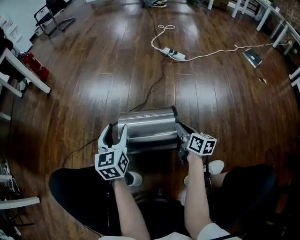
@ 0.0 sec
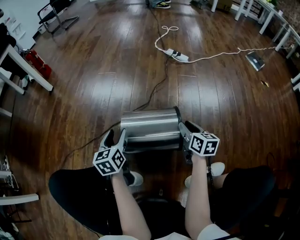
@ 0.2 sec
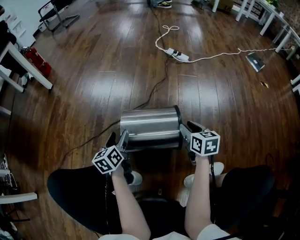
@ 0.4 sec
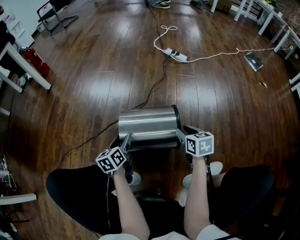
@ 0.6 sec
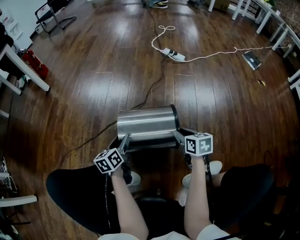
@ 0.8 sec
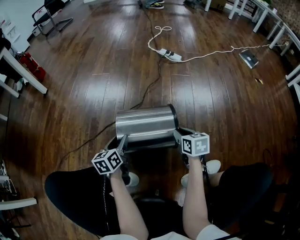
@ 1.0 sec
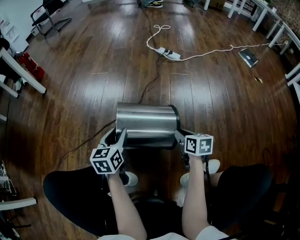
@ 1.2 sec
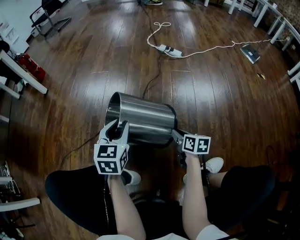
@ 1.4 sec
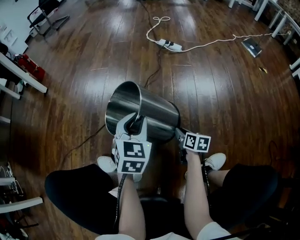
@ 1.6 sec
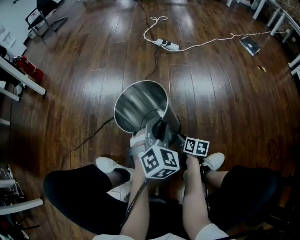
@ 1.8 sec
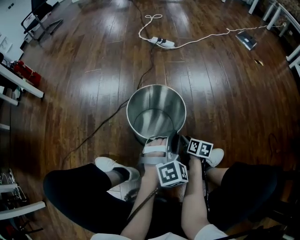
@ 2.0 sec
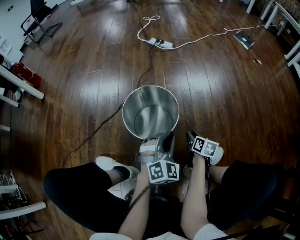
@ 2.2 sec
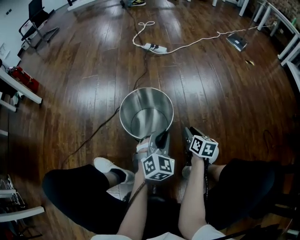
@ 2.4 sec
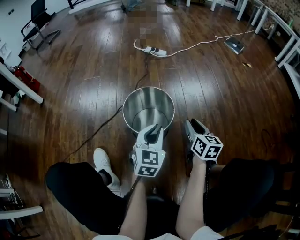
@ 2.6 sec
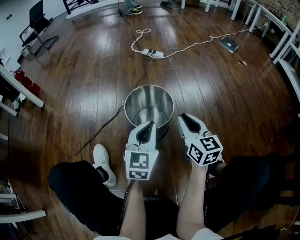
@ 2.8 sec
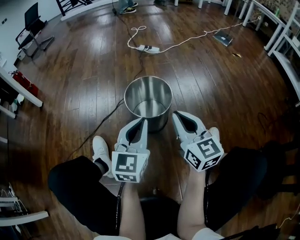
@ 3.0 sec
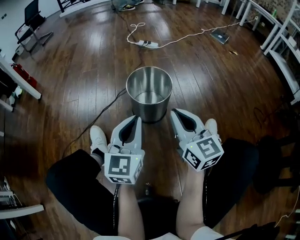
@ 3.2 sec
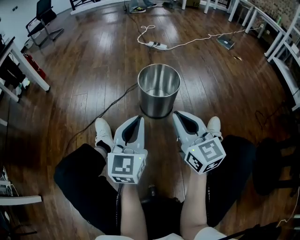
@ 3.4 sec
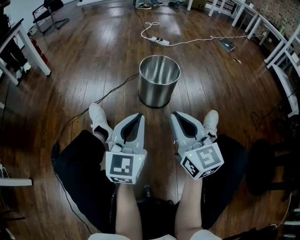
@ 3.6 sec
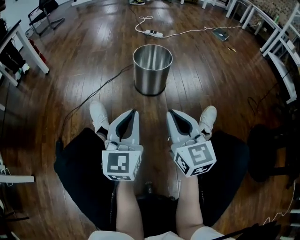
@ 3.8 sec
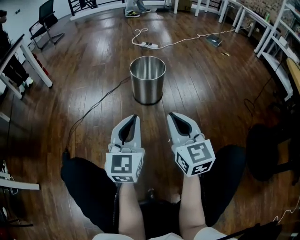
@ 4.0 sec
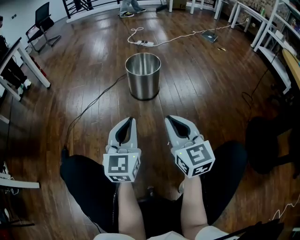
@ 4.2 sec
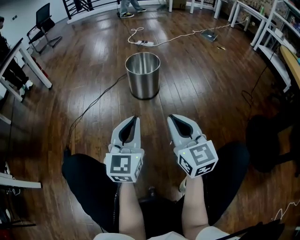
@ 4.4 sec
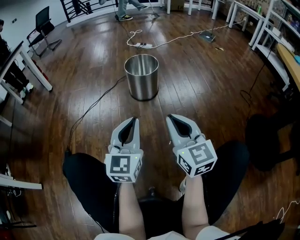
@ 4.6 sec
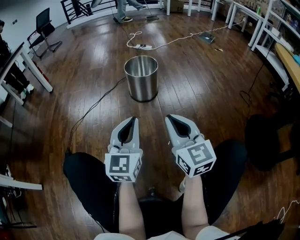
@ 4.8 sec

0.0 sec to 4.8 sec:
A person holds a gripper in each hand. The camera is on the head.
0.0 sec to 1.6 sec: The right gripper shifts some 10 cm downward. Meanwhile the left gripper moves to the right, some 10 cm, turns by some 30 degrees, and closes its fingers.
1.6 sec to 3.2 sec: The right gripper heads upward and backward, covering about 35 cm, and points its fingers approximately 40 degrees further upward. The left gripper goes about 25 cm backward and upward, and turns by about 30 degrees.
3.2 sec to 4.8 sec: Both grippers move backward, approximately 30 cm.
